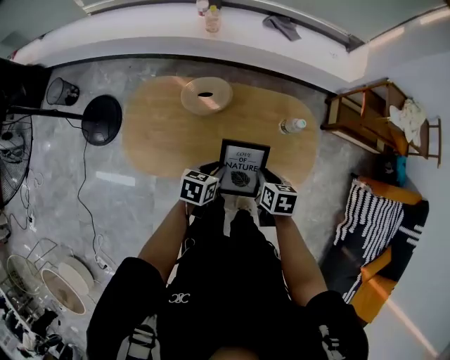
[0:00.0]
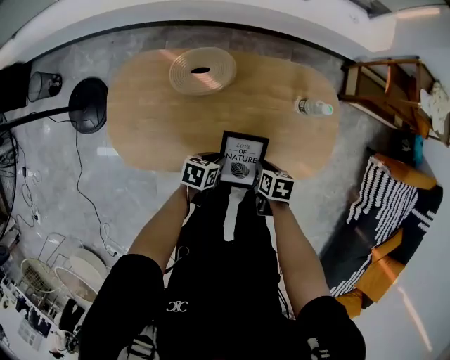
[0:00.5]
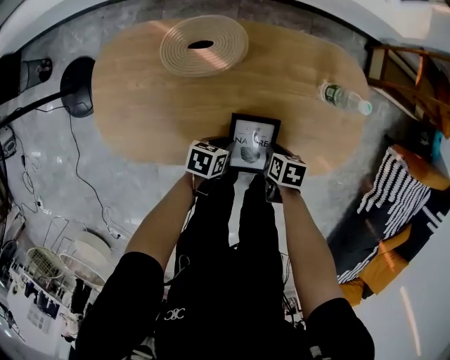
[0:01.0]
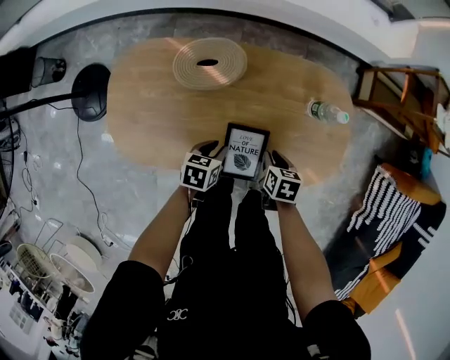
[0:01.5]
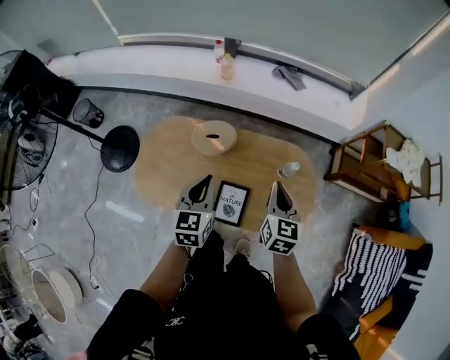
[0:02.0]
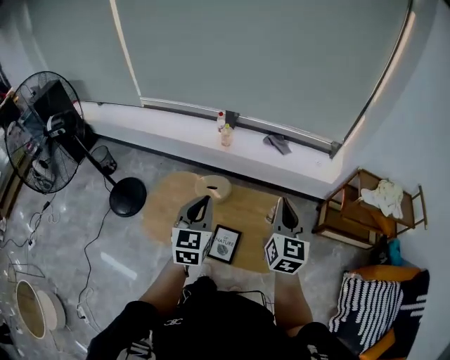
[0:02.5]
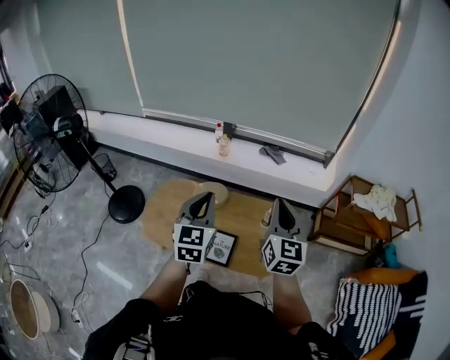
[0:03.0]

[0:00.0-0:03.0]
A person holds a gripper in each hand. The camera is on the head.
0:00.0 to 0:01.5: Both grippers travel together downward, roughly 20 cm.
0:01.5 to 0:03.0: The two grippers go roughly 70 cm upward. The left gripper tilts its fingers roughly 50 degrees upward, and closes. Meanwhile the right gripper tips its fingers upward by roughly 70 degrees, and closes its fingers.

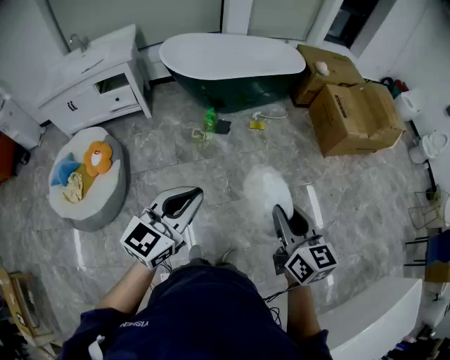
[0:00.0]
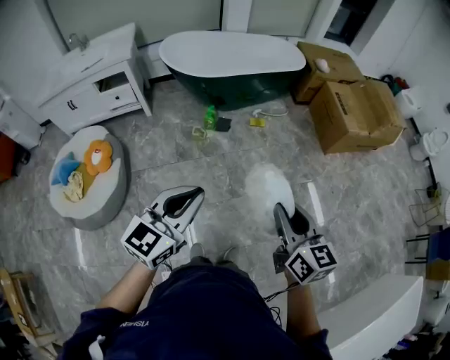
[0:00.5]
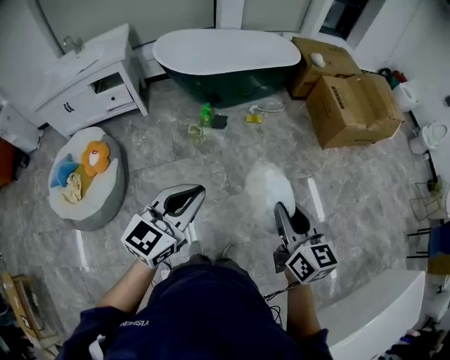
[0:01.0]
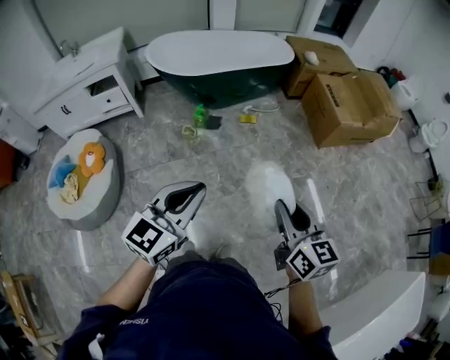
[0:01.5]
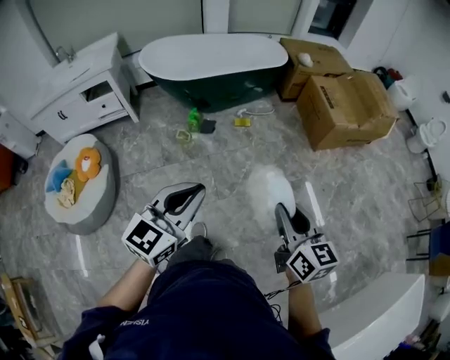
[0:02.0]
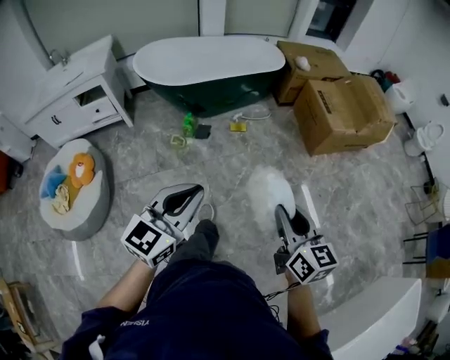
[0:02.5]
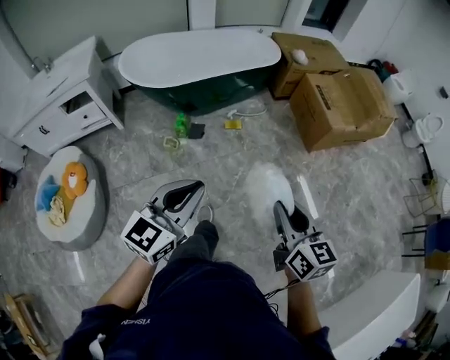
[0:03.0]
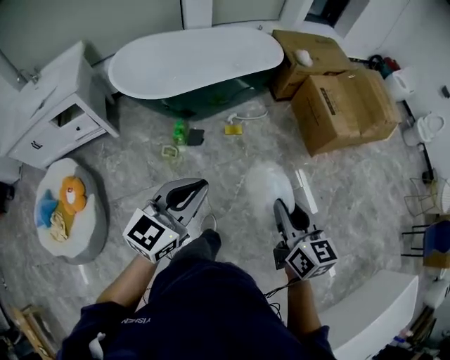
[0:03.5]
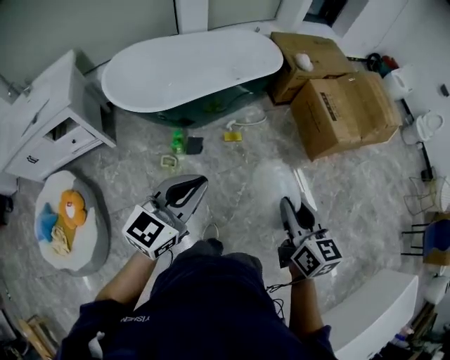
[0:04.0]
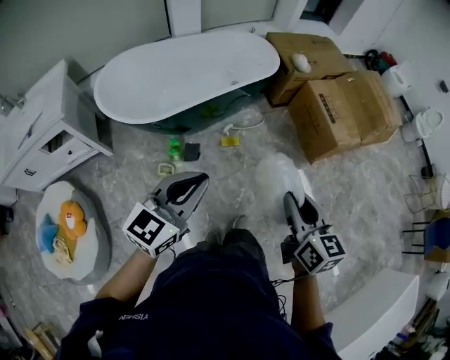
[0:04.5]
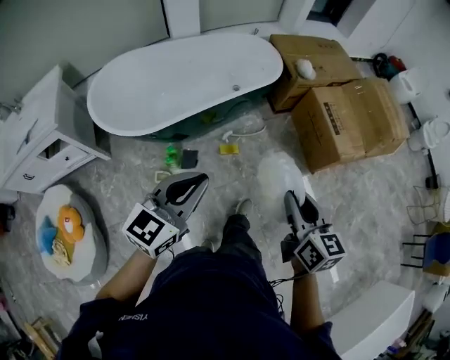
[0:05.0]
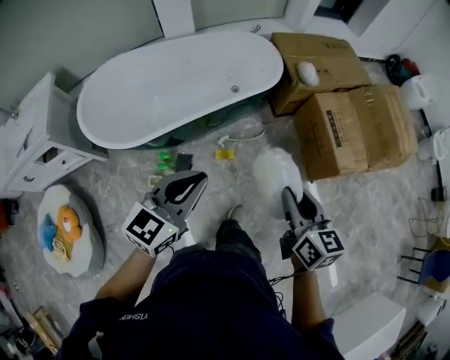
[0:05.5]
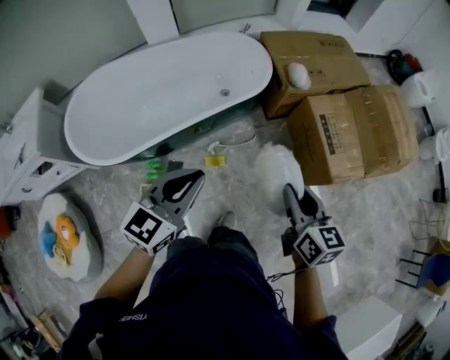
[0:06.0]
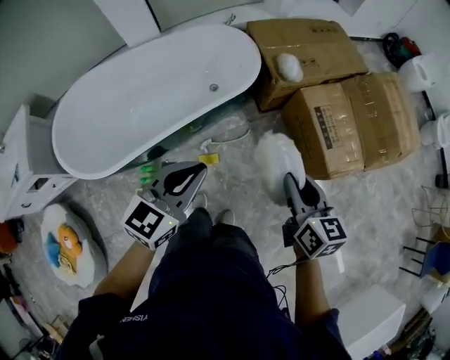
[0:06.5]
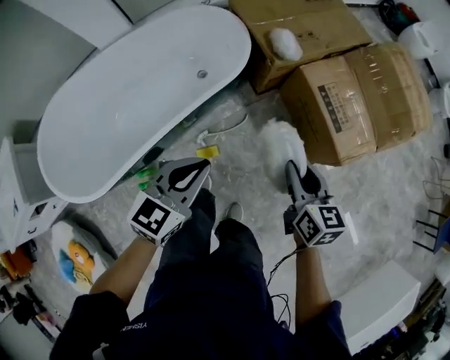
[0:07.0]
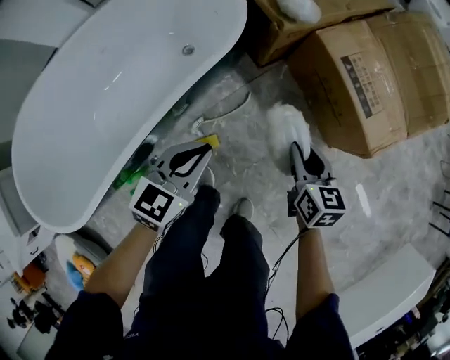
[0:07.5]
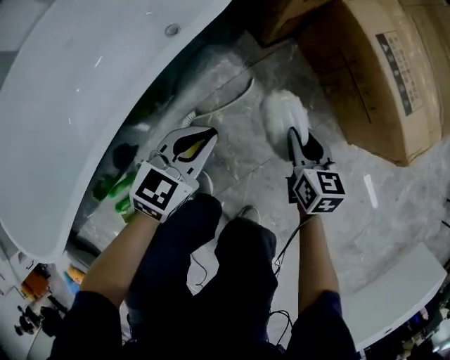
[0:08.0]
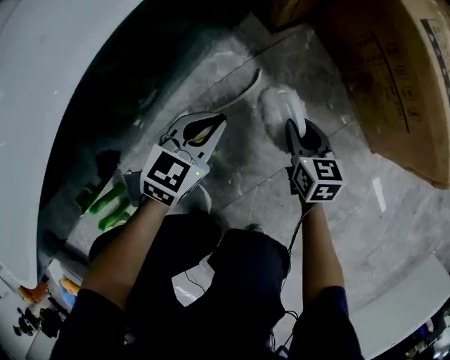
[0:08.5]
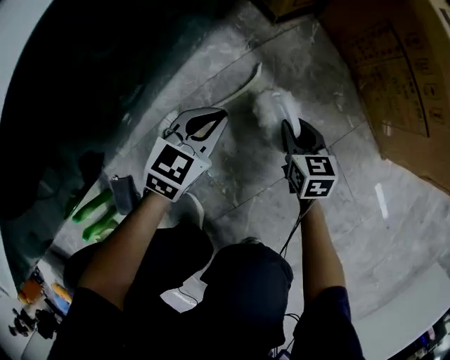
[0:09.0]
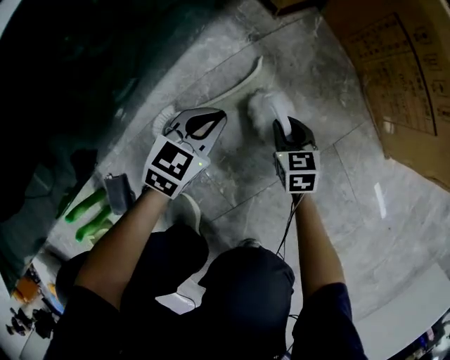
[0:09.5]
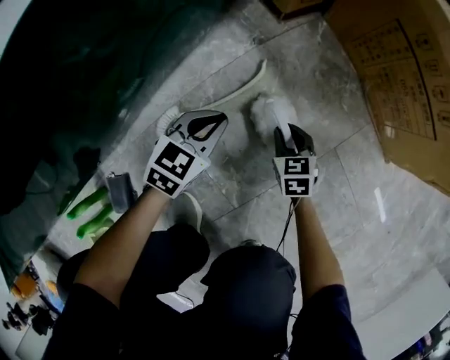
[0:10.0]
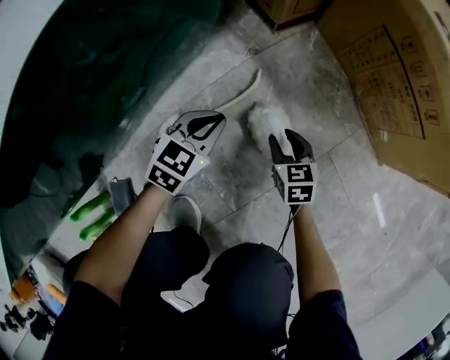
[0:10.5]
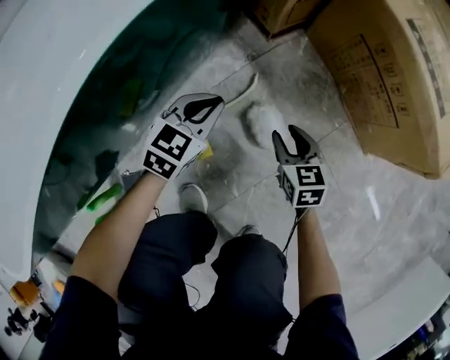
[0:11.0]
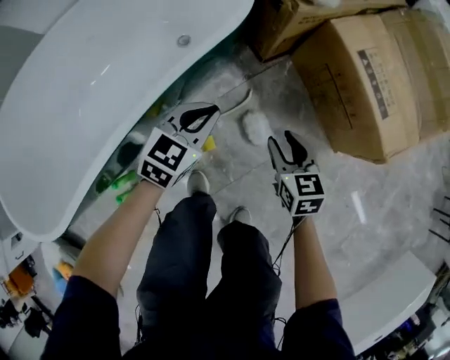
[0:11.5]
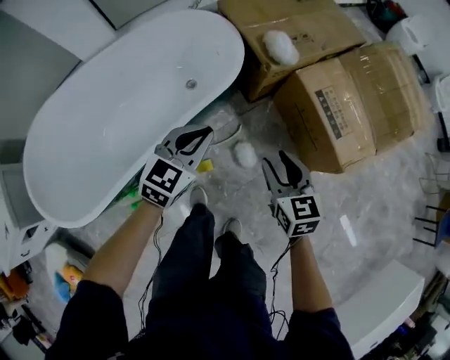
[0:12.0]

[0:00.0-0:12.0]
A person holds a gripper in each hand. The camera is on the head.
0:00.0 to 0:02.0: Both grippers move to the right, about 15 cm.
0:02.0 to 0:04.0: The grippers both shift forward by approximately 35 cm.
0:04.0 to 0:06.0: Both grippers are carried forward, some 40 cm.
0:06.0 to 0:08.0: The right gripper heads downward, covering about 50 cm, and rotates about 20 degrees. Meanwhile the left gripper shifts some 60 cm downward and forward, and changes its angle by about 30 degrees.
0:08.0 to 0:10.0: Both grippers move downward, approximately 35 cm. The right gripper turns by some 20 degrees.
0:10.0 to 0:12.0: Both grippers travel together upward, roughly 70 cm.

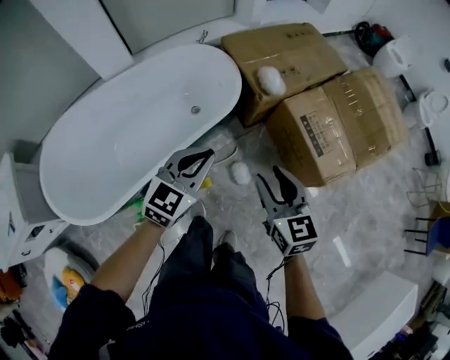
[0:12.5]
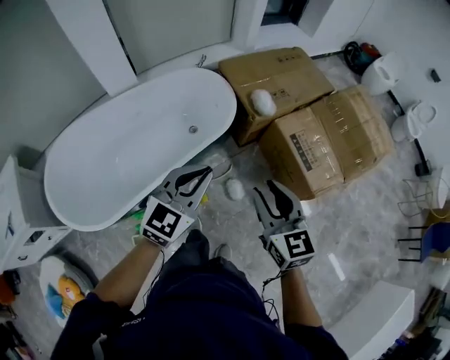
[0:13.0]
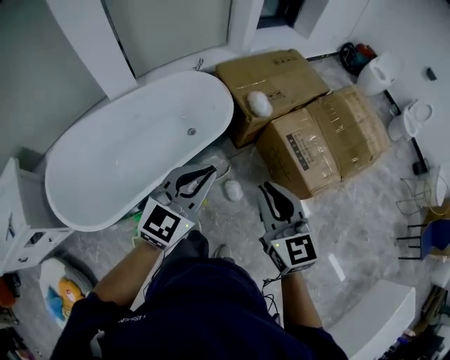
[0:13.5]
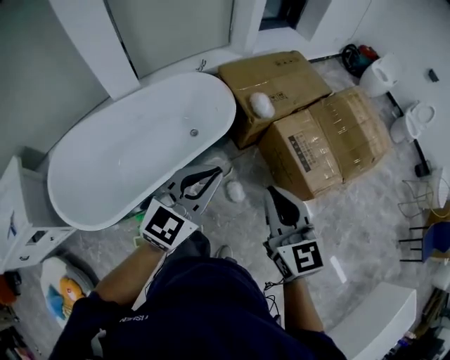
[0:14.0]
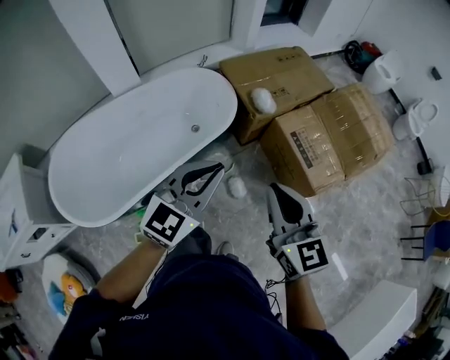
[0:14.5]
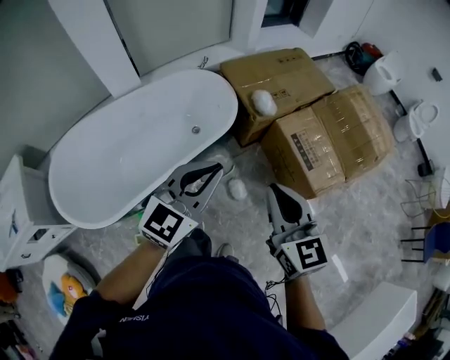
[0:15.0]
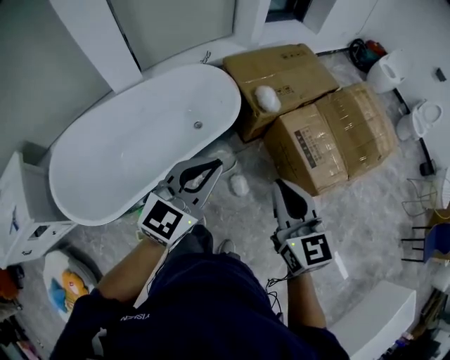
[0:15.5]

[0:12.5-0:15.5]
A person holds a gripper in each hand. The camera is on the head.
0:12.5 to 0:14.0: Both grippers travel together upward and backward, about 15 cm. The right gripper closes.
0:14.0 to 0:15.5: The grippers stay close to where they were, moving slightly.

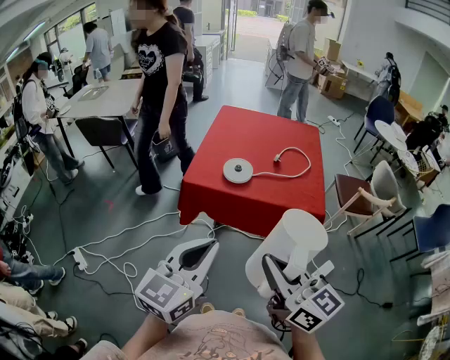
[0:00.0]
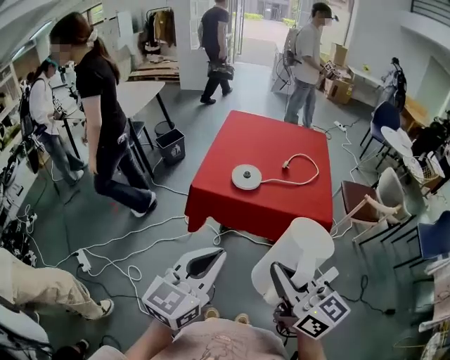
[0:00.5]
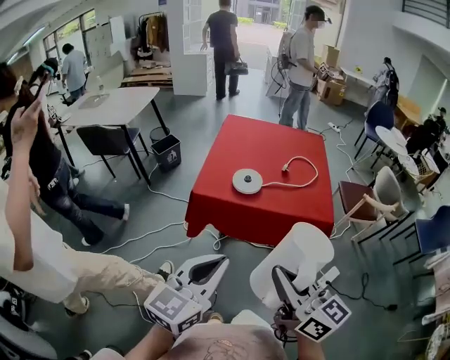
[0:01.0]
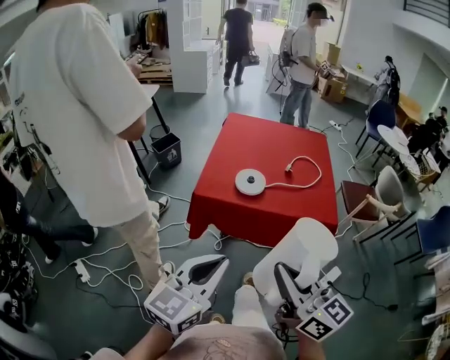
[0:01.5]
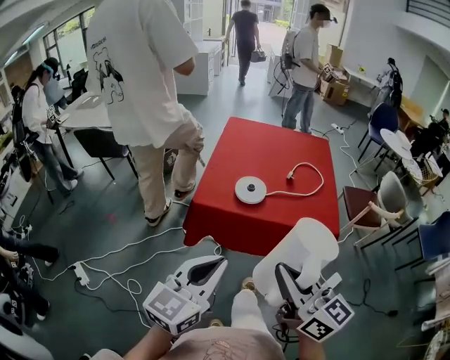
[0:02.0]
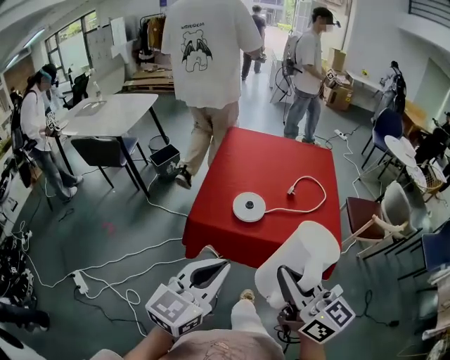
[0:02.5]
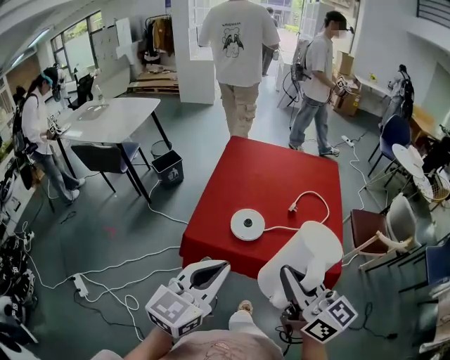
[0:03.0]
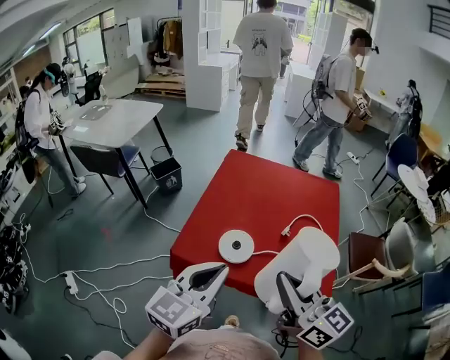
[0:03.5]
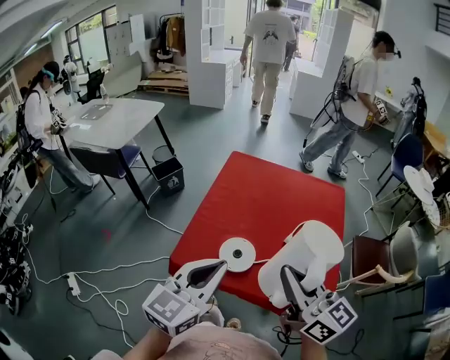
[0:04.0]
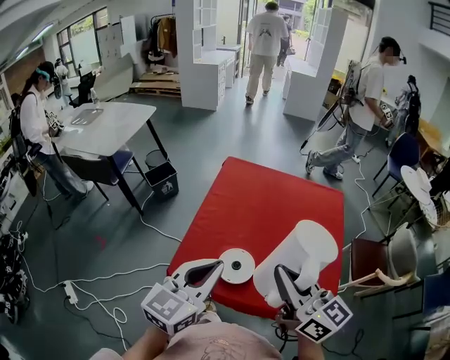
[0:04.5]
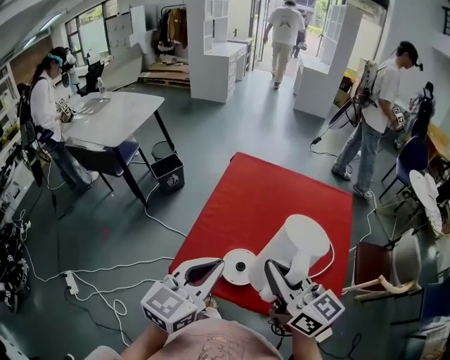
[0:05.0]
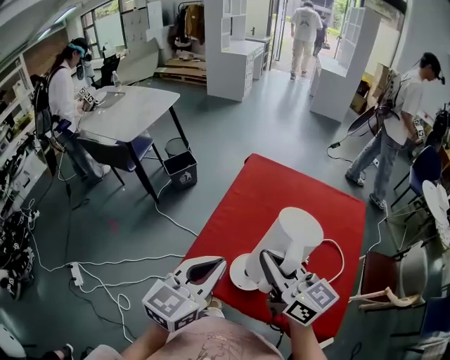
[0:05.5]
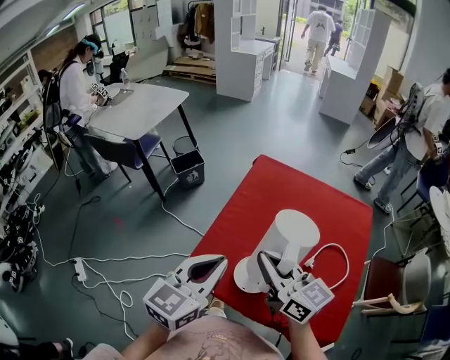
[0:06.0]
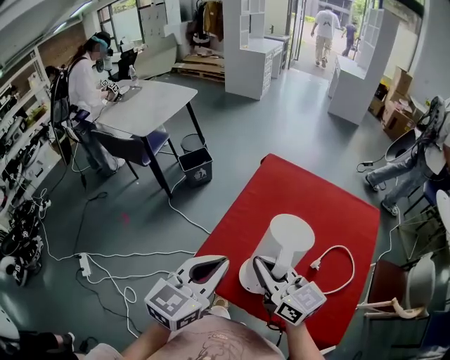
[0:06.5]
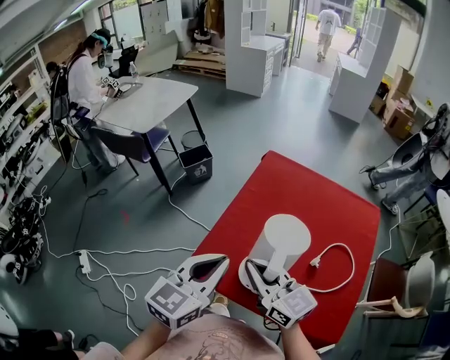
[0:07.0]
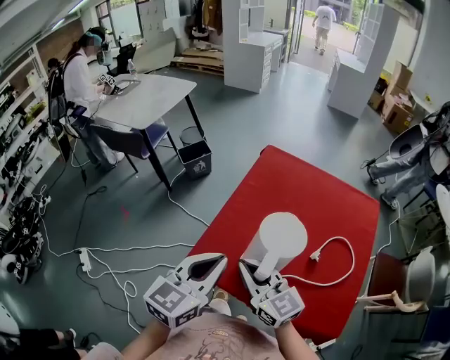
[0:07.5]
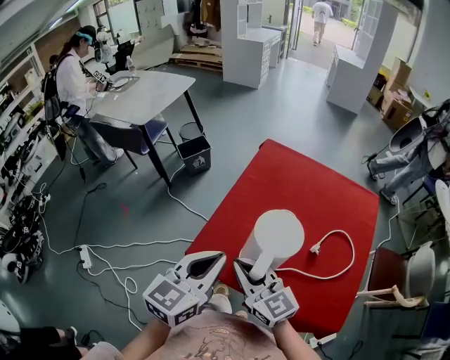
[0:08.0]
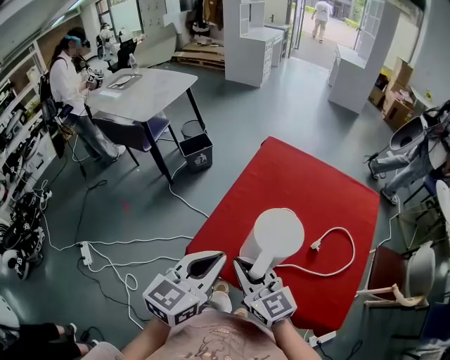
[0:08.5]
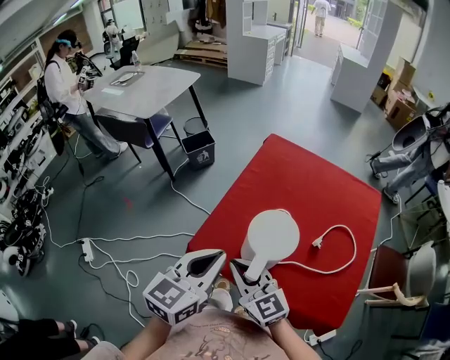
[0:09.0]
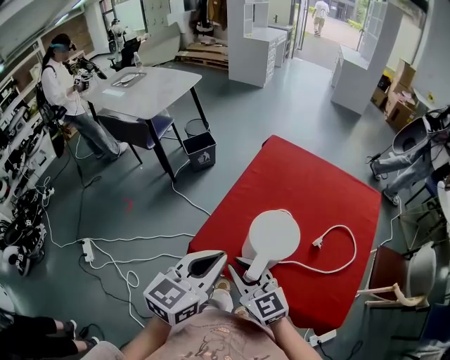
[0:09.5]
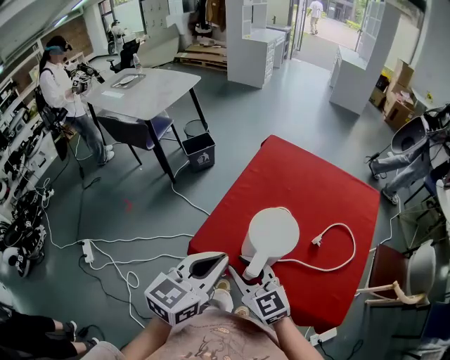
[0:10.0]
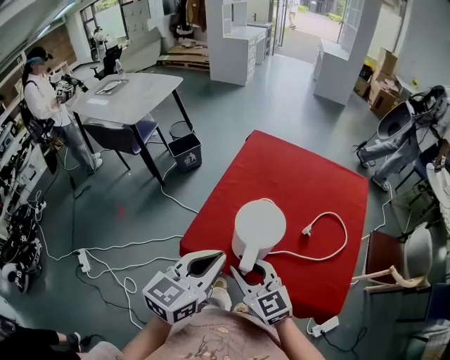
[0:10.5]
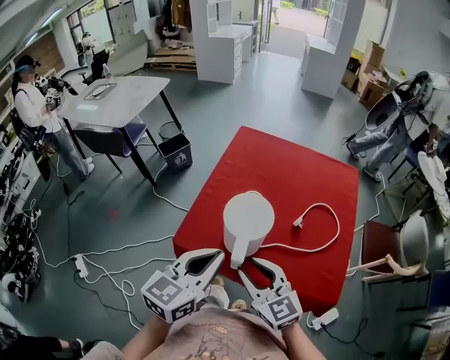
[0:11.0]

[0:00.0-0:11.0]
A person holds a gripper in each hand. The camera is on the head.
0:00.0 to 0:02.0: Both grippers move forward, about 5 cm.
0:02.0 to 0:03.5: Both grippers move forward, about 25 cm.
0:03.5 to 0:05.5: The left gripper is displaced forward by some 15 cm; the right gripper heads forward and to the left, covering approximately 20 cm.
0:05.5 to 0:07.5: The right gripper goes approximately 10 cm downward and to the left.
0:07.5 to 0:09.0: The right gripper ends up some 5 cm from where it was.
0:09.0 to 0:11.0: The right gripper goes about 10 cm to the right and backward, and opens up. Meanwhile the left gripper moves roughly 5 cm.
